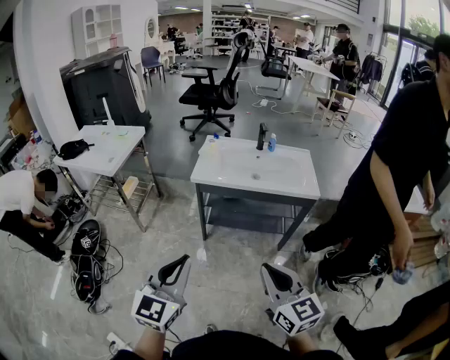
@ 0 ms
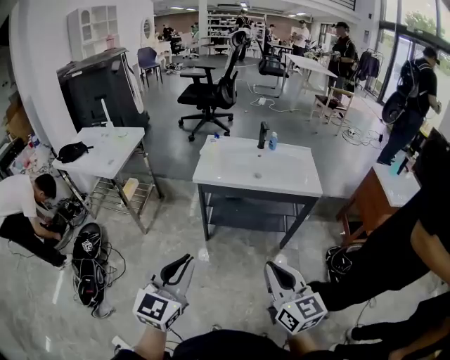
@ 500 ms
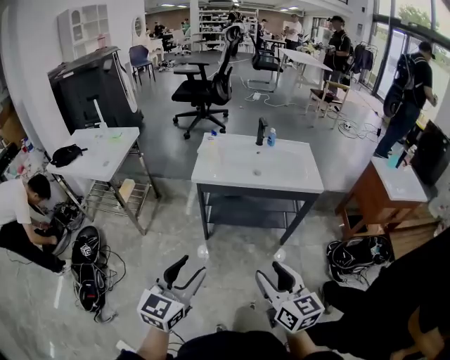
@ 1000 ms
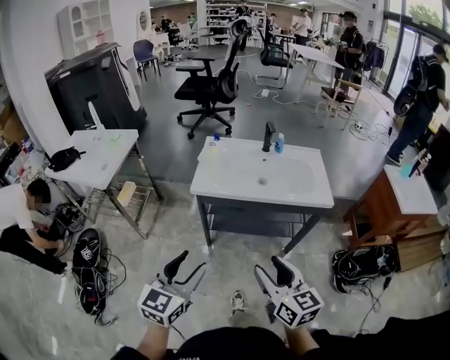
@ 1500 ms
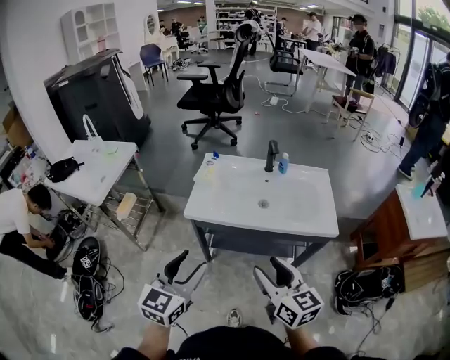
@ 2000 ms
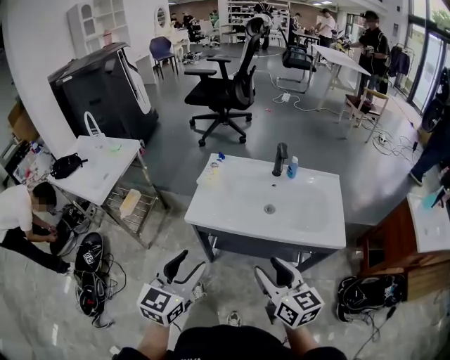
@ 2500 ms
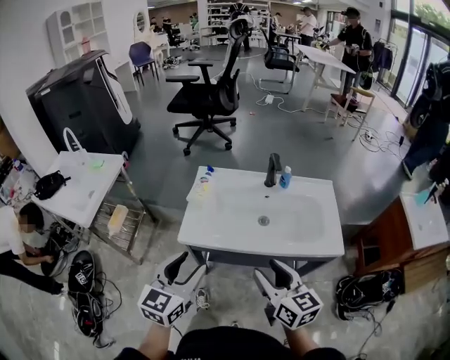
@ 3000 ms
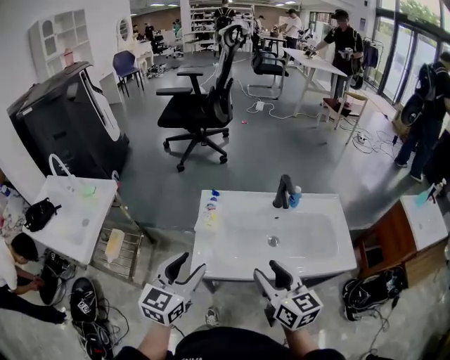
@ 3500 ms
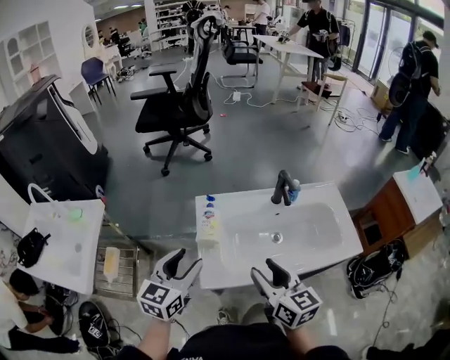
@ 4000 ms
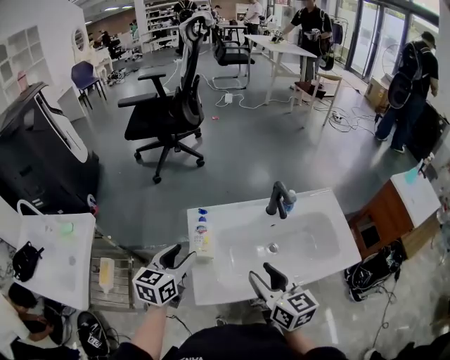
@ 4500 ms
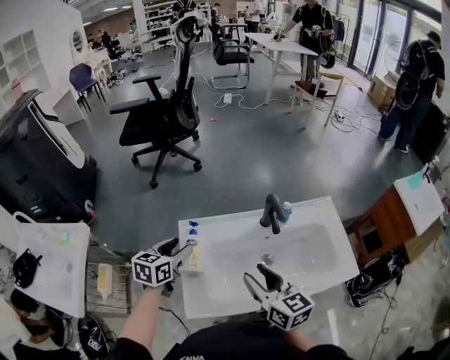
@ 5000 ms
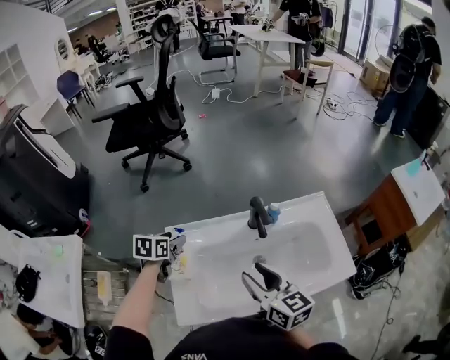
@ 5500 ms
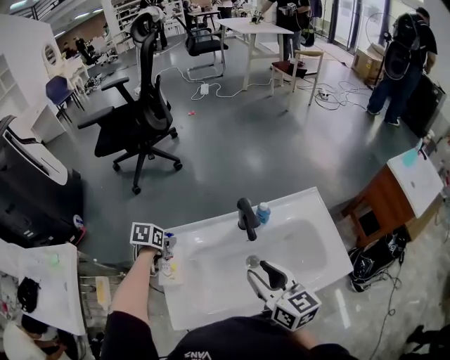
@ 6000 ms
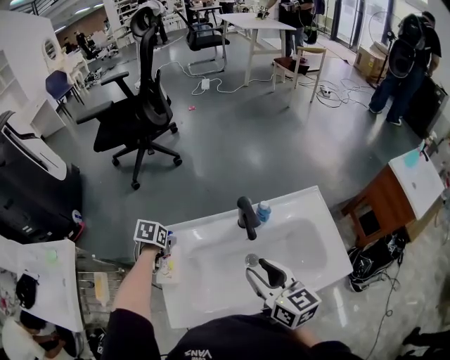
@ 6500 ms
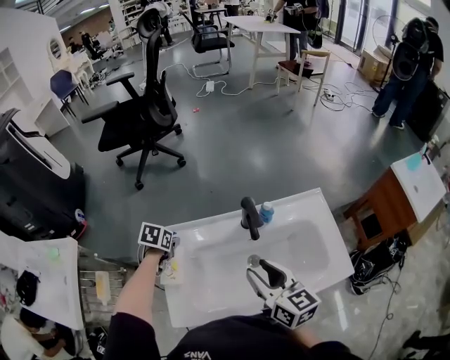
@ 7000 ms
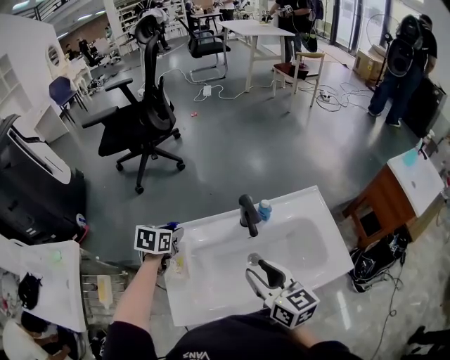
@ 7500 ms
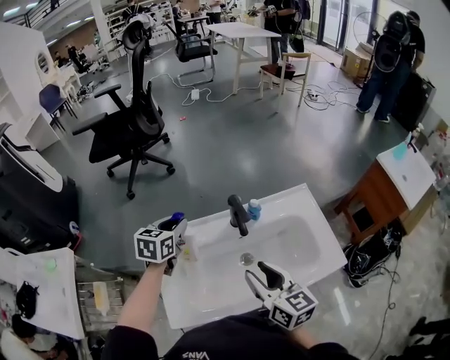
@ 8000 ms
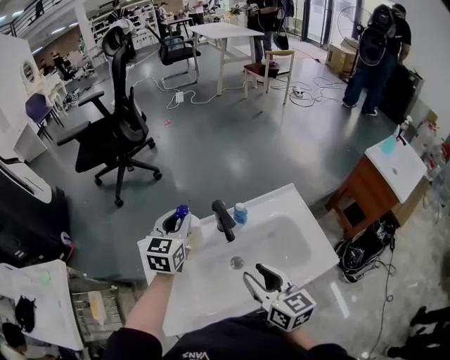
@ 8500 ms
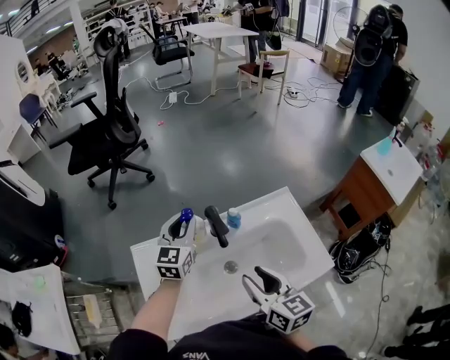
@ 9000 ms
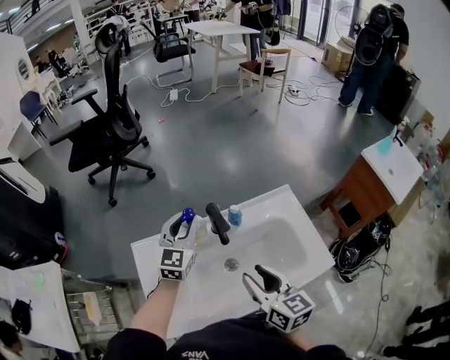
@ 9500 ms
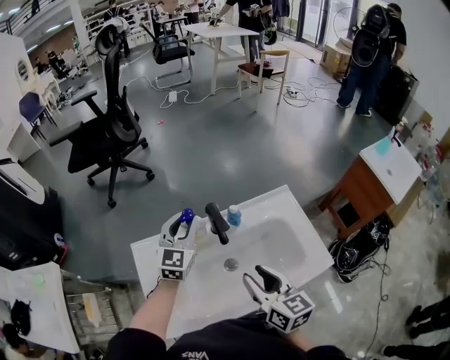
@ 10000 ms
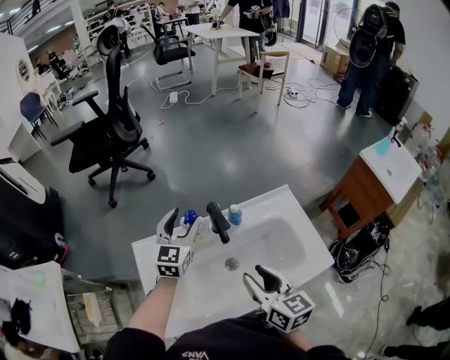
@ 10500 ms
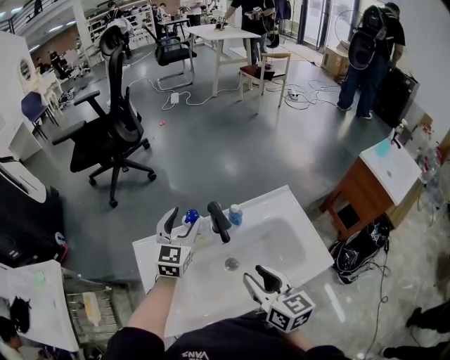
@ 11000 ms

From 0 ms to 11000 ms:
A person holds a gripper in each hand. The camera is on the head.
From 0 ms to 2000 ms: The grippers both shift forward by approximately 25 cm. The right gripper opens up; the left gripper opens.
From 2000 ms to 3500 ms: Both grippers move forward, about 25 cm.
From 3500 ms to 5500 ms: The left gripper moves forward and downward, roughly 35 cm, and tilts its fingers about 30 degrees downward; the right gripper shifts about 15 cm forward.
From 5500 ms to 7500 ms: The left gripper moves about 10 cm downward and comes back, and closes up.
From 7500 ms to 9000 ms: The left gripper heads to the right and upward, covering approximately 20 cm, and tips its fingers upward by some 40 degrees, while the right gripper is displaced to the right by some 5 cm.
From 9000 ms to 11000 ms: The left gripper opens up.

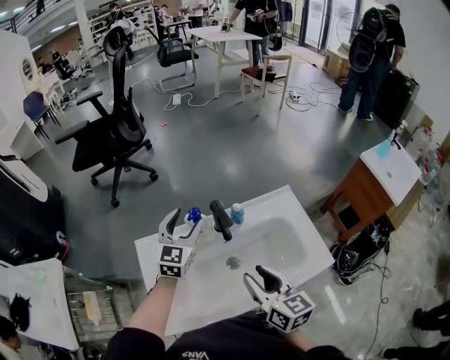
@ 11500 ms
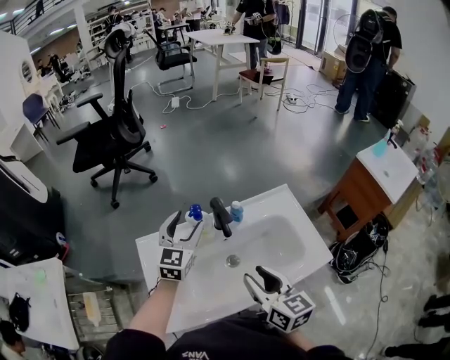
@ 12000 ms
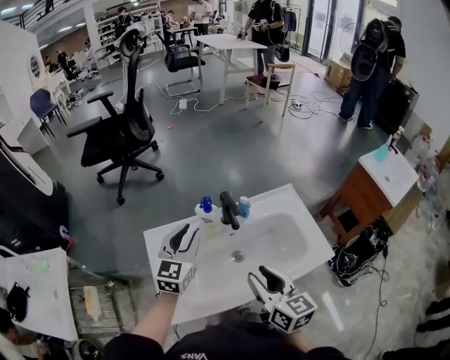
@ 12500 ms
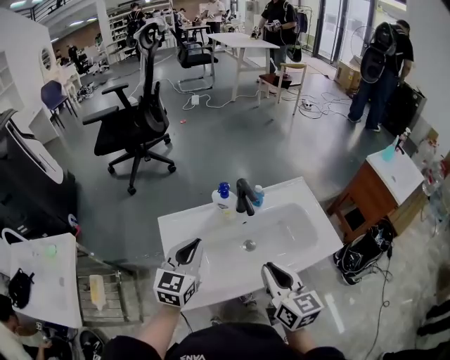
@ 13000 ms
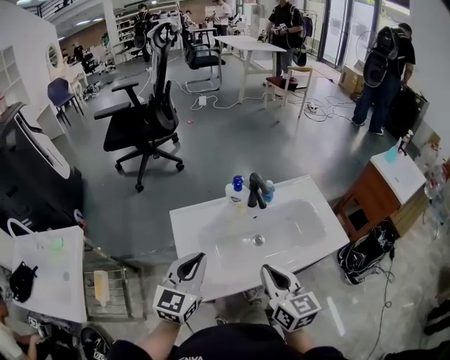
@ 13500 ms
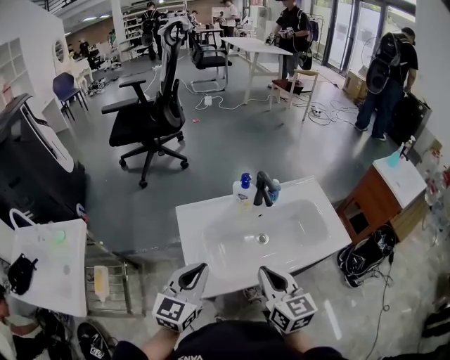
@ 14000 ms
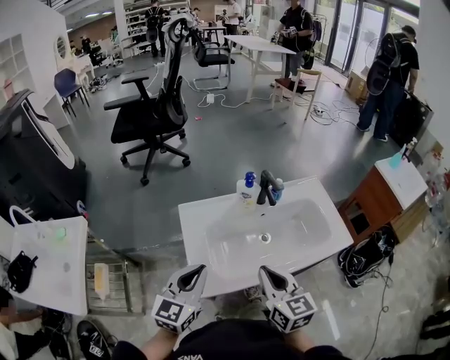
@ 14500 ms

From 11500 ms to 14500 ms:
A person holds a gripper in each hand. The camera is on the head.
From 11500 ms to 13000 ms: The left gripper is displaced backward by some 20 cm, and closes up. The right gripper travels backward by about 10 cm, and closes.
From 13000 ms to 14500 ms: The right gripper is displaced to the left by about 10 cm, while the left gripper shifts approximately 15 cm backward and to the left.

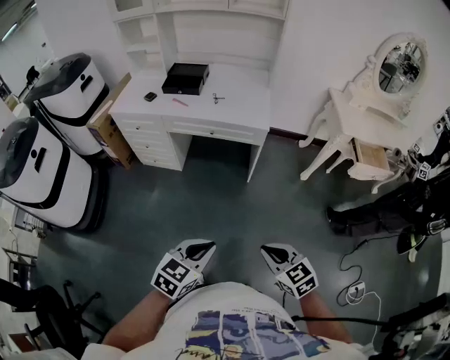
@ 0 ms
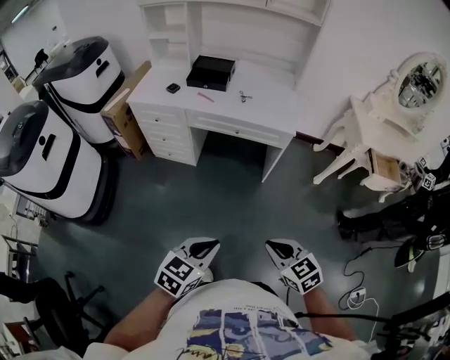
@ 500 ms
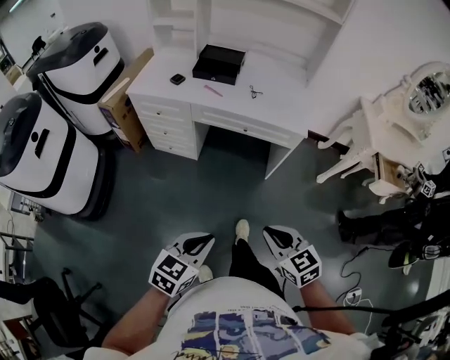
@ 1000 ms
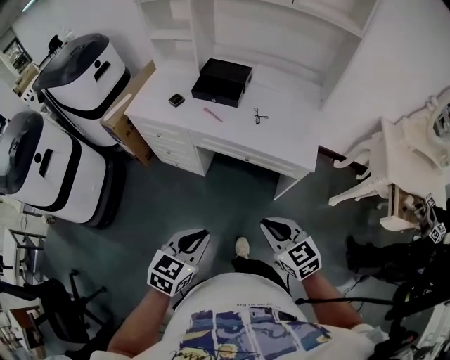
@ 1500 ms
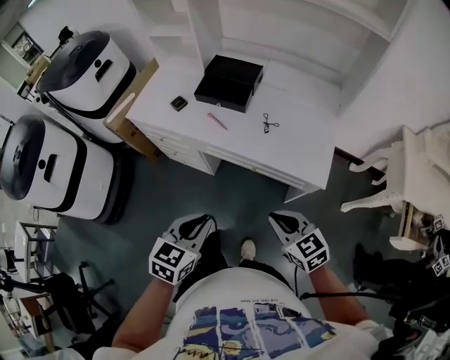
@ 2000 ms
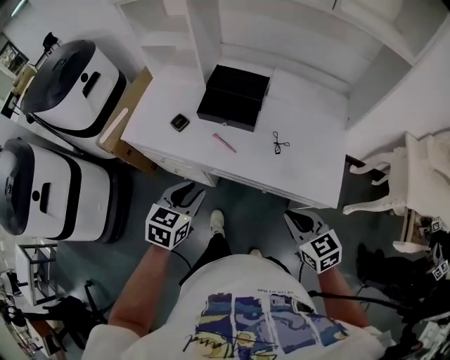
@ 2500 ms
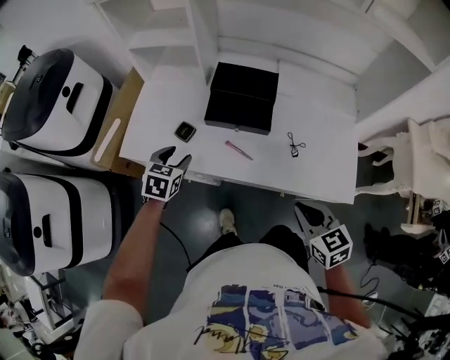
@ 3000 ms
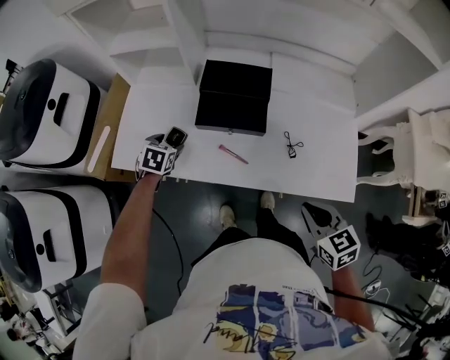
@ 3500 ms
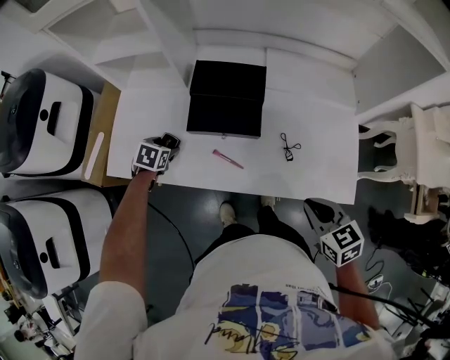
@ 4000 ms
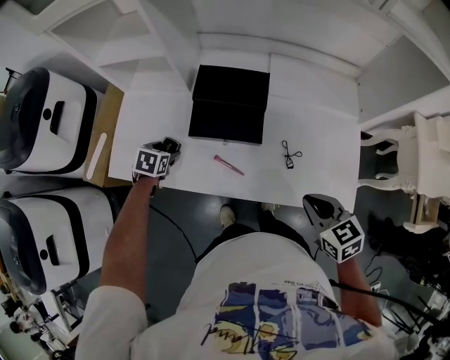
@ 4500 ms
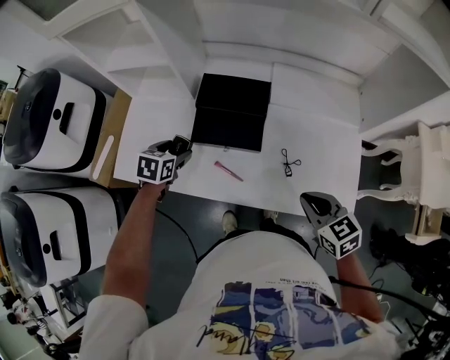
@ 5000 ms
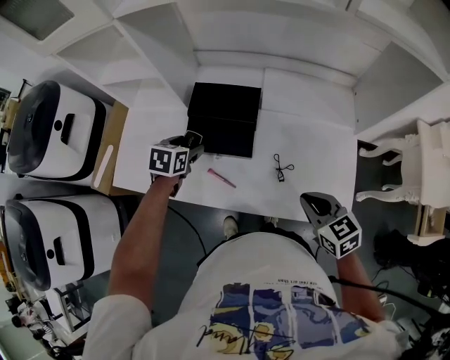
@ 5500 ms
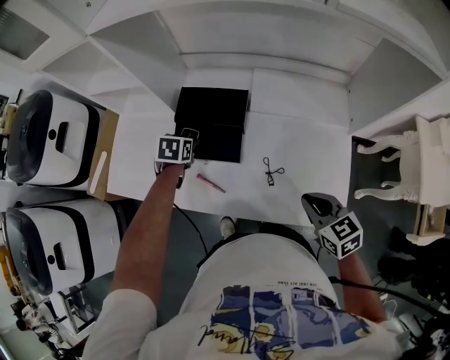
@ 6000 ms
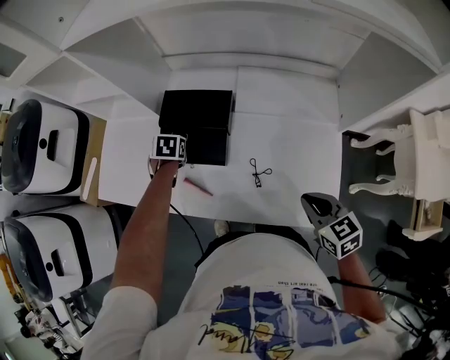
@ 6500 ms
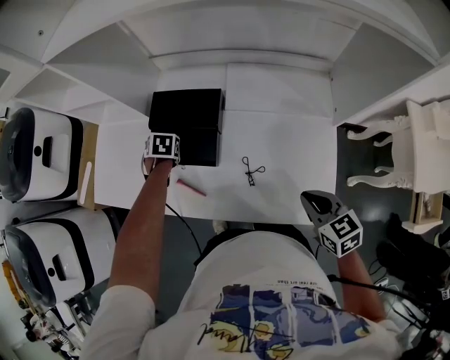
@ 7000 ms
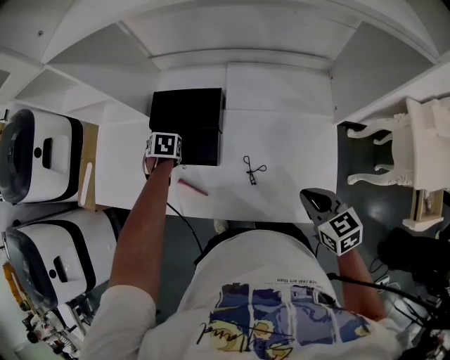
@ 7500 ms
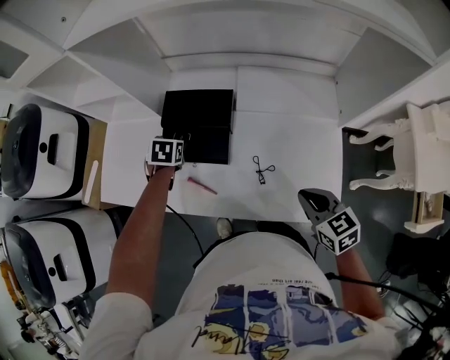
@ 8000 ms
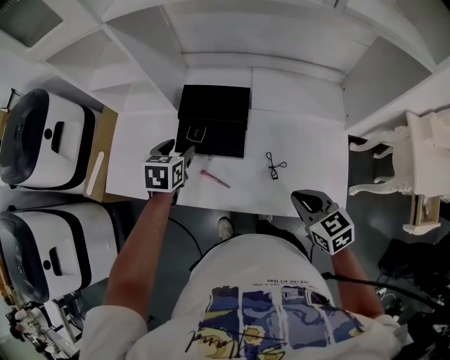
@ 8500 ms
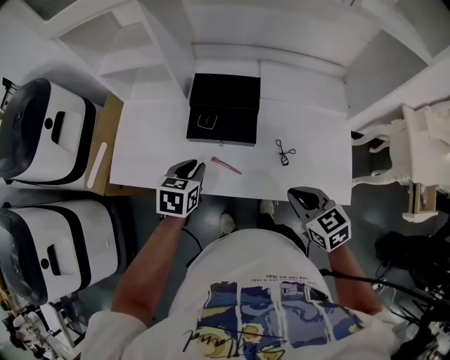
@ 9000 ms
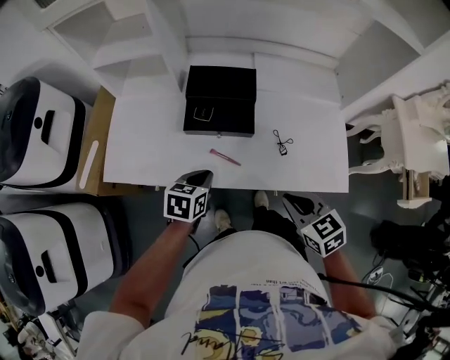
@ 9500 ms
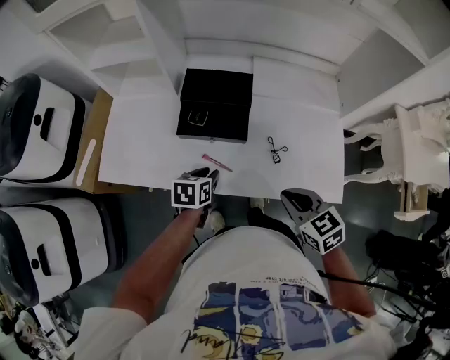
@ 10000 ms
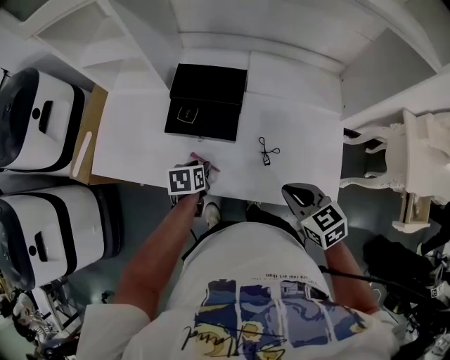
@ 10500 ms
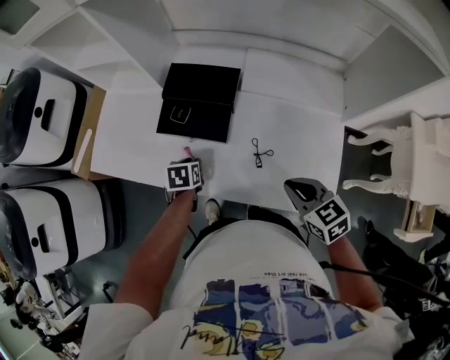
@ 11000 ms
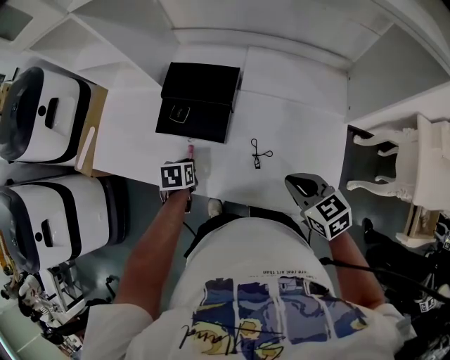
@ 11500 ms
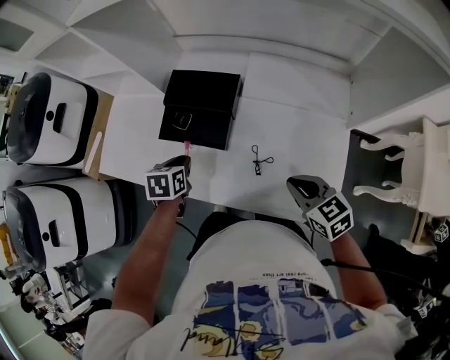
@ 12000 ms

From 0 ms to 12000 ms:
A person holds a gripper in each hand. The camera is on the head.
From 0 ms to 2000 ms: The two grippers go some 40 cm forward. The left gripper swivels some 20 degrees.
From 2000 ms to 4000 ms: The right gripper heads forward, covering some 20 cm, and rotates roughly 30 degrees. The left gripper travels forward, to the left and downward by approximately 60 cm, angles its fingers downward, by some 30 degrees, and opens up.
From 4000 ms to 6000 ms: The grippers both shift to the right and forward by about 15 cm.
From 6000 ms to 8000 ms: The grippers stay close to where they were, moving slightly.
From 8000 ms to 10000 ms: The left gripper is displaced backward by roughly 20 cm, rotates some 30 degrees, and closes up. Meanwhile the right gripper heads to the left and backward, covering some 15 cm.
From 10000 ms to 12000 ms: The right gripper goes roughly 15 cm to the right and forward. The left gripper moves forward, approximately 5 cm, travels downward and back again, about 5 cm each way, and swivels roughly 20 degrees.
